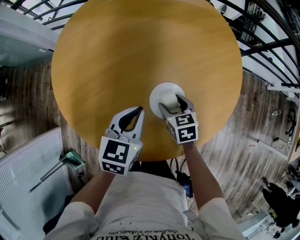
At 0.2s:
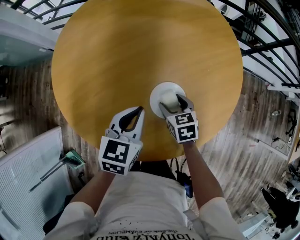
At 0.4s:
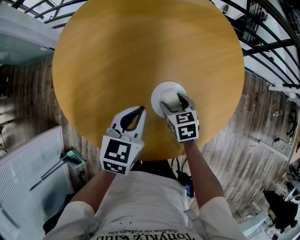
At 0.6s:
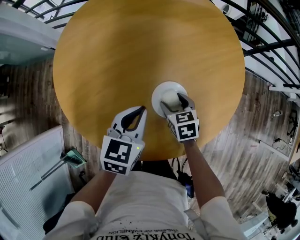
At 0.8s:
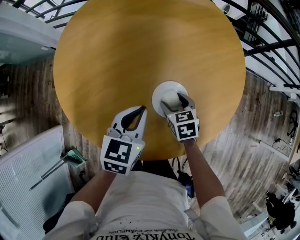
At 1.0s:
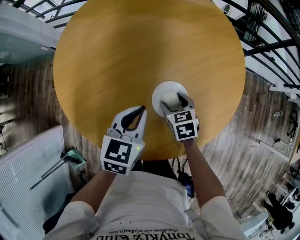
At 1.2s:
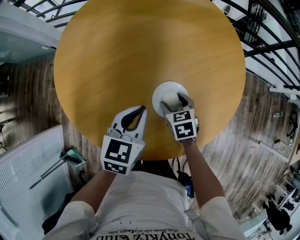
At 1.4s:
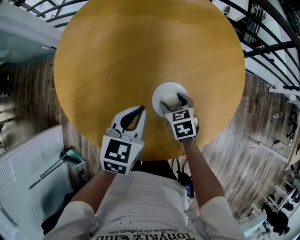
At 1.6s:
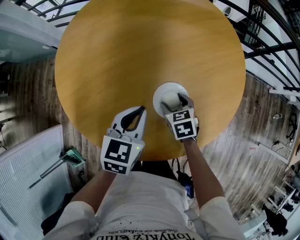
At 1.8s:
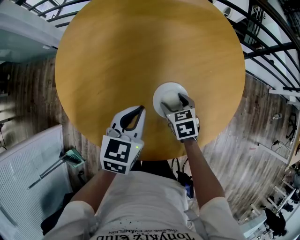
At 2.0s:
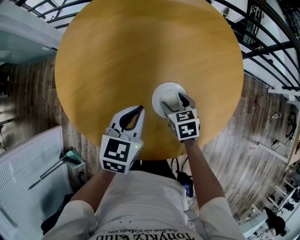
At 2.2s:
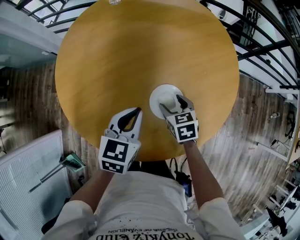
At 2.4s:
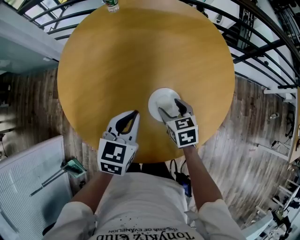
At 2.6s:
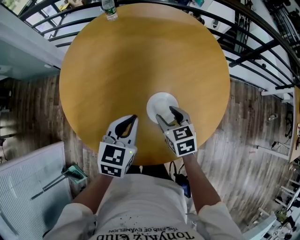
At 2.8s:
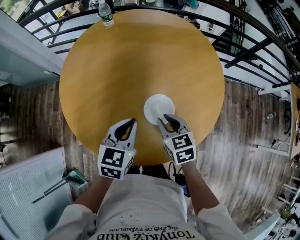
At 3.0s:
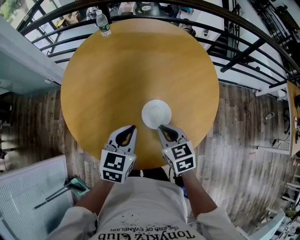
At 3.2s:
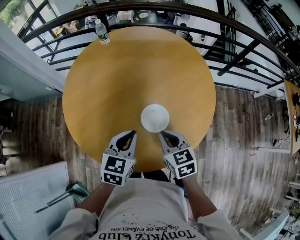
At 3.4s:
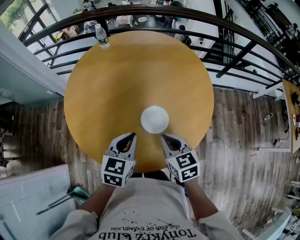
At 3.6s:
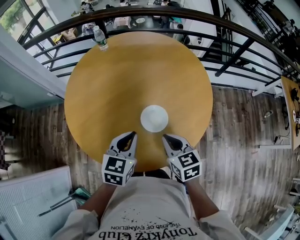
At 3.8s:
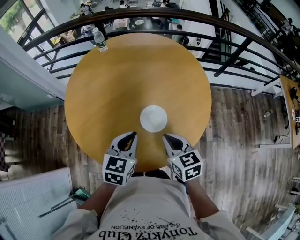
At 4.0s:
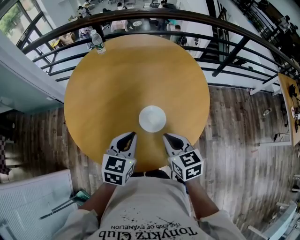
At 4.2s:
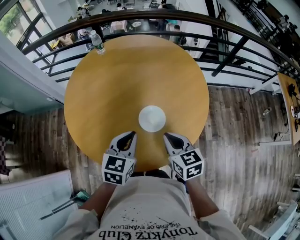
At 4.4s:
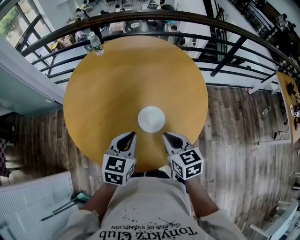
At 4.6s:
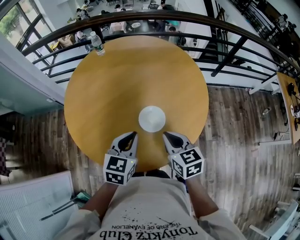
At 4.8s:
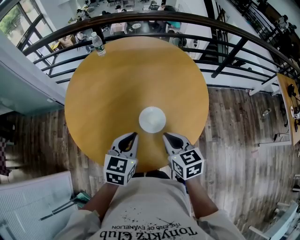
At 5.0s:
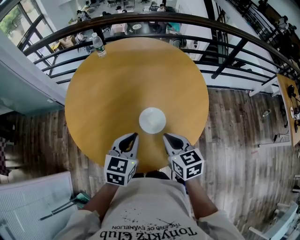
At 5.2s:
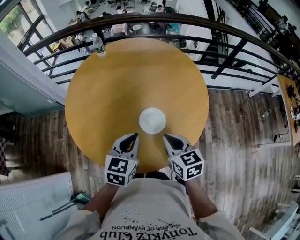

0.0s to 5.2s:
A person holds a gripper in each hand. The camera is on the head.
0.0s to 1.8s: The grippers make only small movements.
1.8s to 3.4s: The right gripper heads upward and backward, covering some 25 cm, changes its angle by some 20 degrees, and closes, while the left gripper travels backward and upward by approximately 10 cm.
3.4s to 5.2s: There are only small adjustments of the grippers.

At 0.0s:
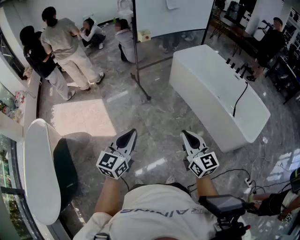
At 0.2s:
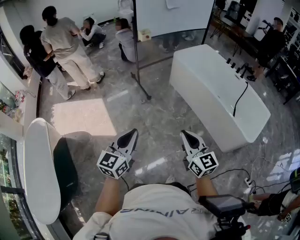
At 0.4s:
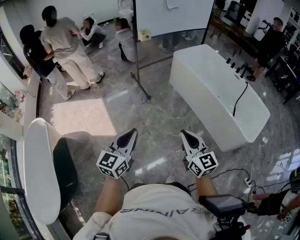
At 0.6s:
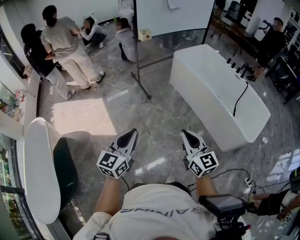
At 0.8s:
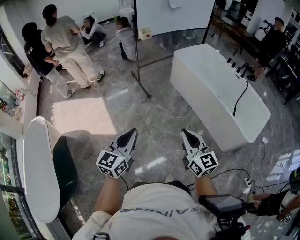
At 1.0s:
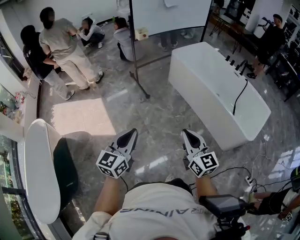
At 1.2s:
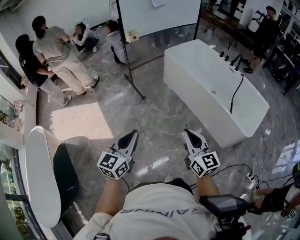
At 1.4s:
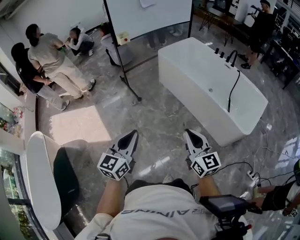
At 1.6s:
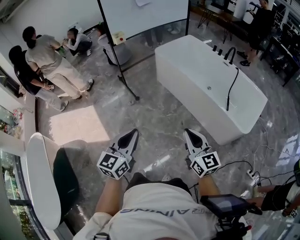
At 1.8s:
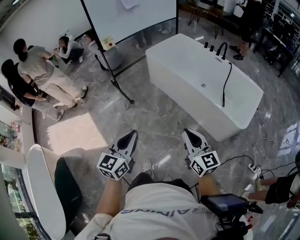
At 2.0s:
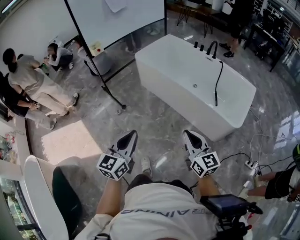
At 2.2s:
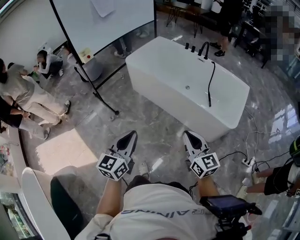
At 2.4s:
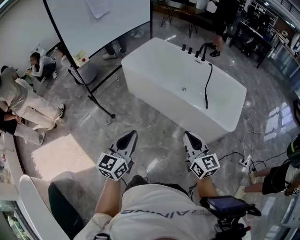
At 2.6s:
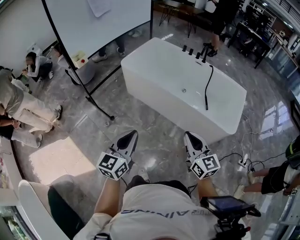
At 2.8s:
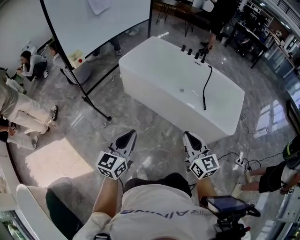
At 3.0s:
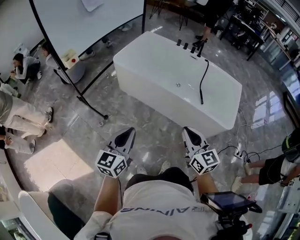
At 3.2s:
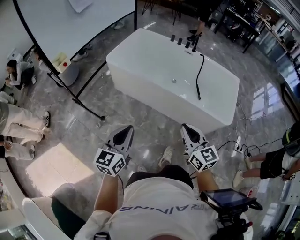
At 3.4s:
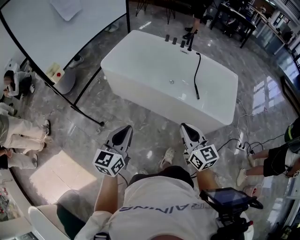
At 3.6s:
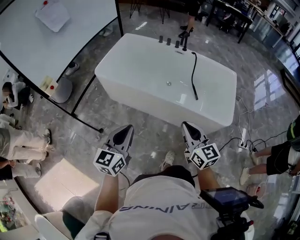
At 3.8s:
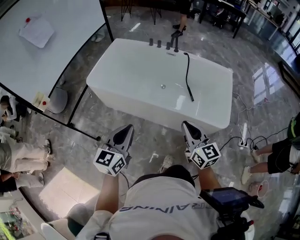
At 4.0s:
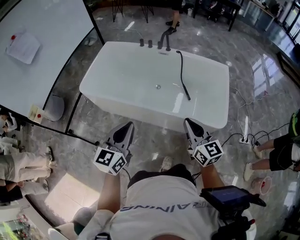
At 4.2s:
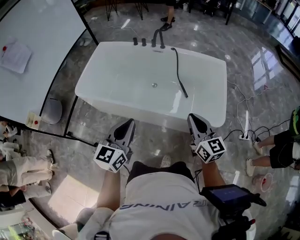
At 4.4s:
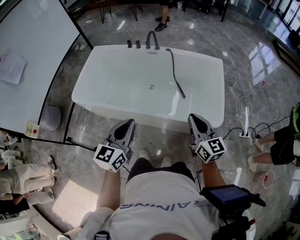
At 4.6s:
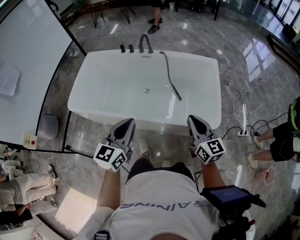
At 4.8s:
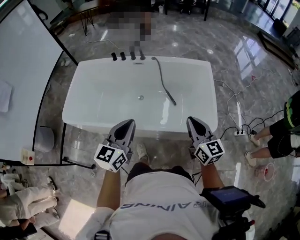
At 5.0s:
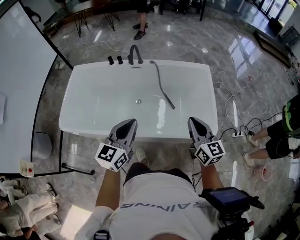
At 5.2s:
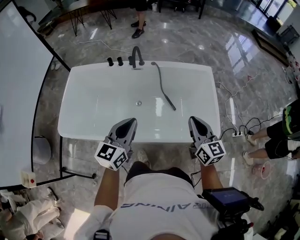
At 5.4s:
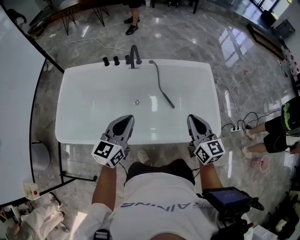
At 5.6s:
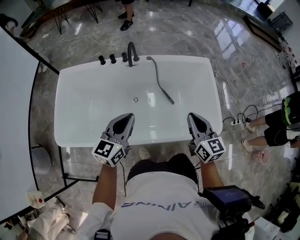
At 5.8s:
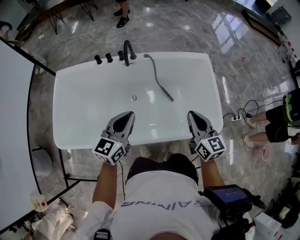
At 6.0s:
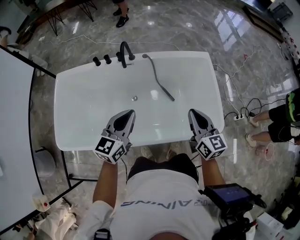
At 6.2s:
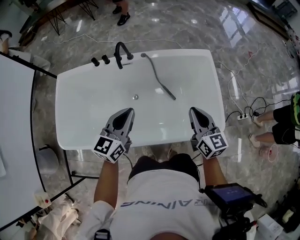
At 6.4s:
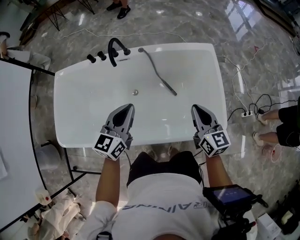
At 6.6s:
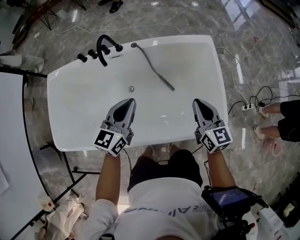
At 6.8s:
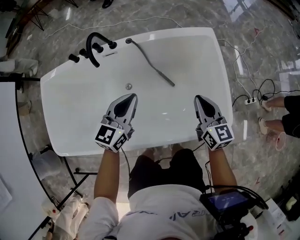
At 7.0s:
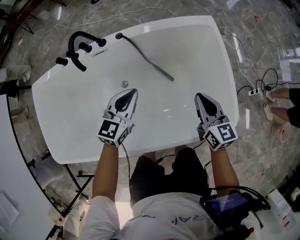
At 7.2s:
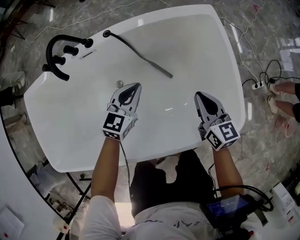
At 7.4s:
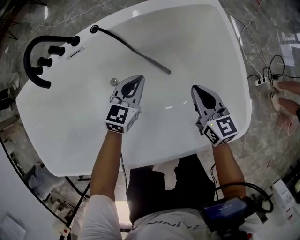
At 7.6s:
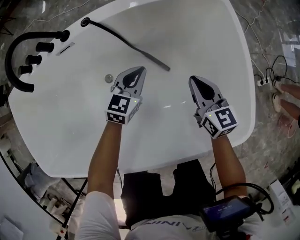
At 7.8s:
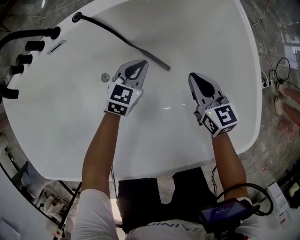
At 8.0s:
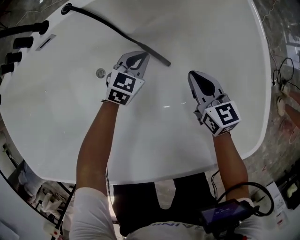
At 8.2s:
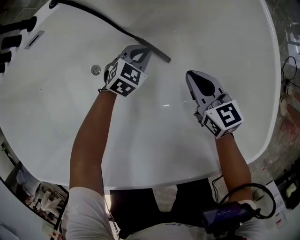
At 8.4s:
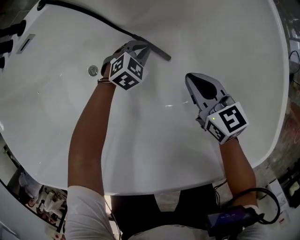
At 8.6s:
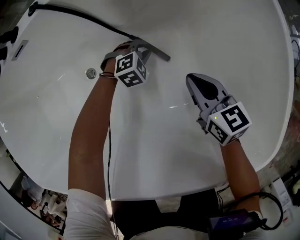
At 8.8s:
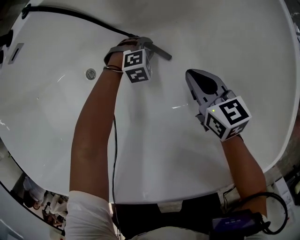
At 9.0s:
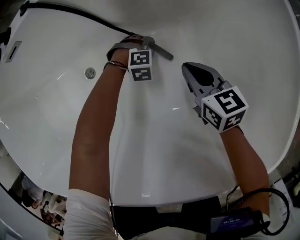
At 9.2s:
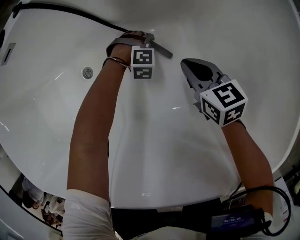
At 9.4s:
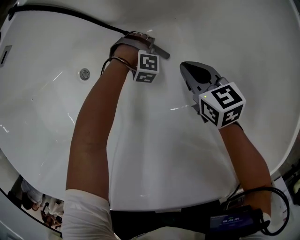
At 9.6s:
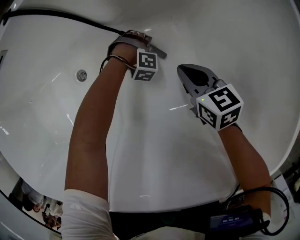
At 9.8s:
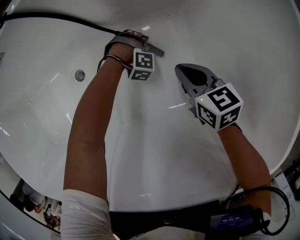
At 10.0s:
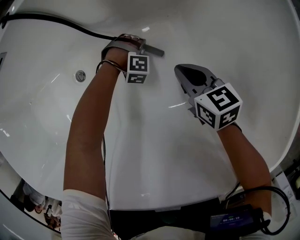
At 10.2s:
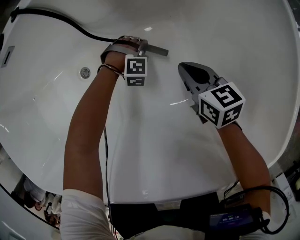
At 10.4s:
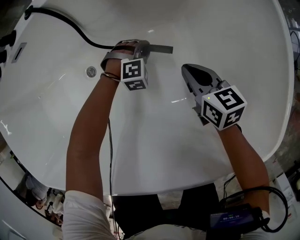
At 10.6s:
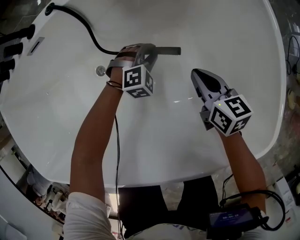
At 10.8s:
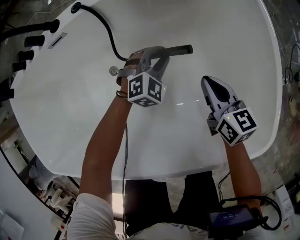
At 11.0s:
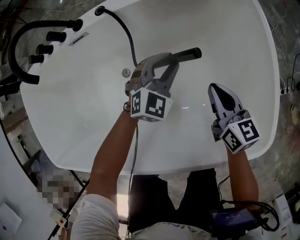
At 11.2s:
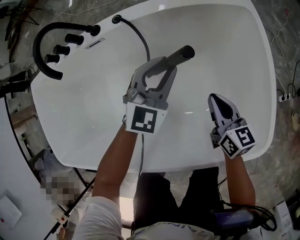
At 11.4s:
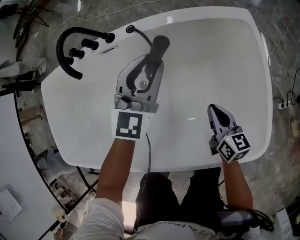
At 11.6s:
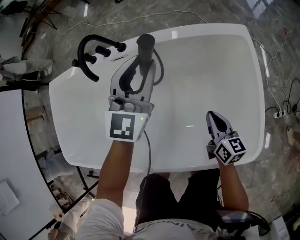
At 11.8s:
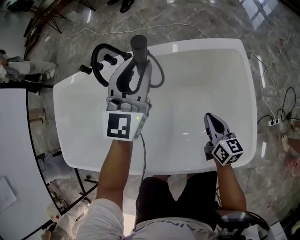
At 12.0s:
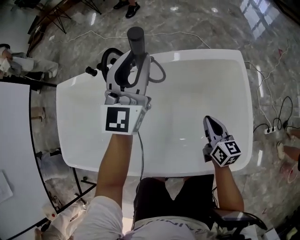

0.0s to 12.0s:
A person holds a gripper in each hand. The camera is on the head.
0.0s to 1.6s: The two grippers go roughly 20 cm to the right.
1.6s to 3.0s: The grippers both shift forward by about 30 cm. The left gripper swivels some 20 degrees. Meanwhile the right gripper changes its angle by roughly 20 degrees.
3.0s to 4.4s: The two grippers travel together, forward and to the right, about 50 cm. The right gripper rotates roughly 20 degrees.
4.4s to 6.0s: Both grippers move forward, approximately 30 cm. The left gripper turns by approximately 20 degrees. Meanwhile the right gripper changes its angle by about 20 degrees.
6.0s to 7.6s: The two grippers go some 50 cm downward and forward. The left gripper swivels about 20 degrees.
7.6s to 9.0s: The right gripper travels downward by approximately 25 cm. The left gripper shifts approximately 40 cm downward, rolls clockwise, seen from behind, by roughly 60 degrees, and opens.
9.0s to 10.4s: The left gripper is displaced upward by about 5 cm.
10.4s to 12.0s: The left gripper goes some 80 cm upward, and tips its fingers upward by approximately 70 degrees. The right gripper heads upward, covering some 35 cm.

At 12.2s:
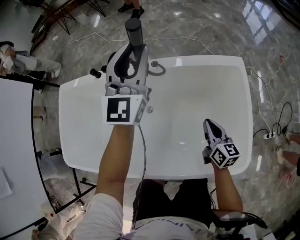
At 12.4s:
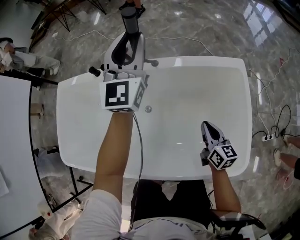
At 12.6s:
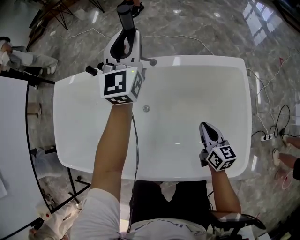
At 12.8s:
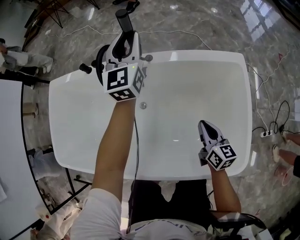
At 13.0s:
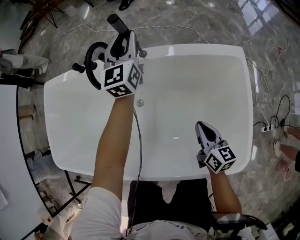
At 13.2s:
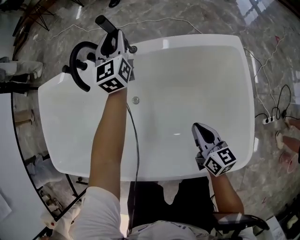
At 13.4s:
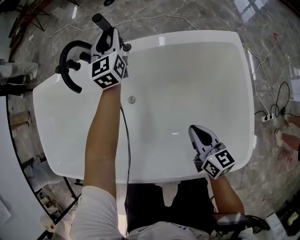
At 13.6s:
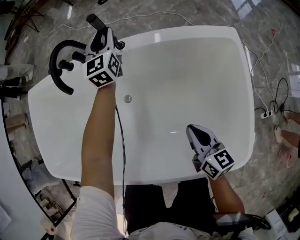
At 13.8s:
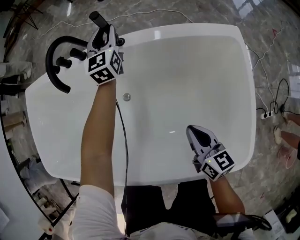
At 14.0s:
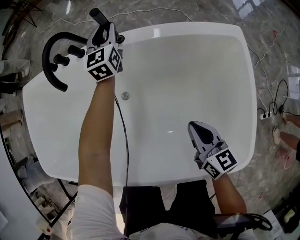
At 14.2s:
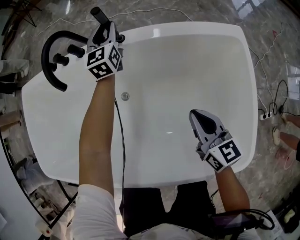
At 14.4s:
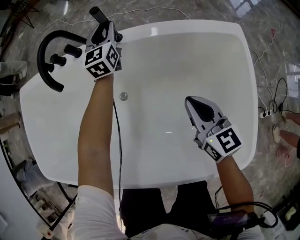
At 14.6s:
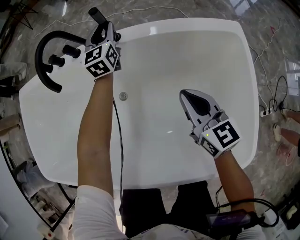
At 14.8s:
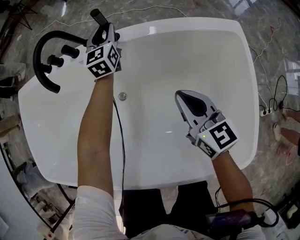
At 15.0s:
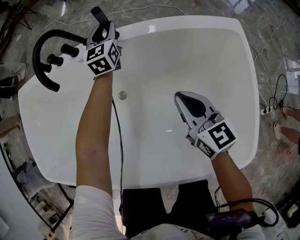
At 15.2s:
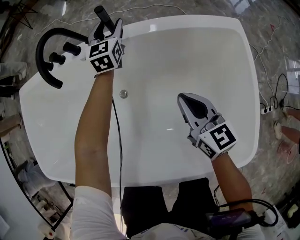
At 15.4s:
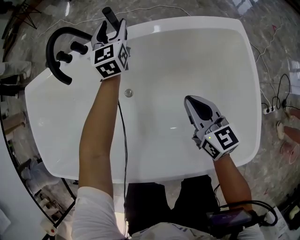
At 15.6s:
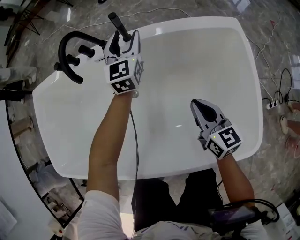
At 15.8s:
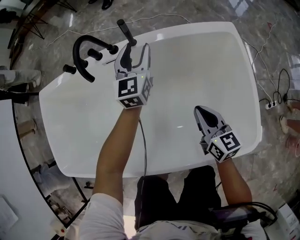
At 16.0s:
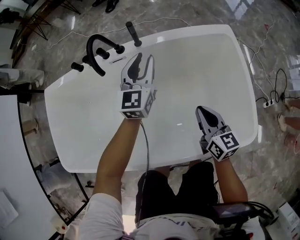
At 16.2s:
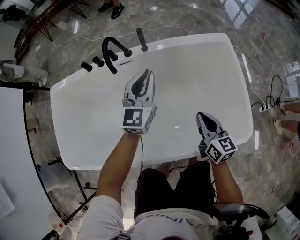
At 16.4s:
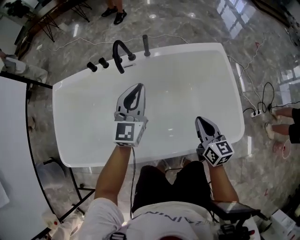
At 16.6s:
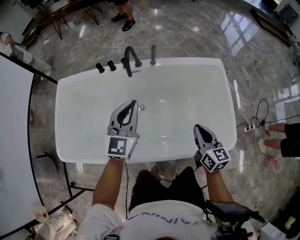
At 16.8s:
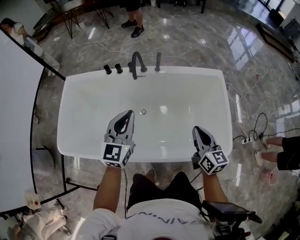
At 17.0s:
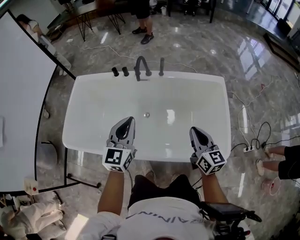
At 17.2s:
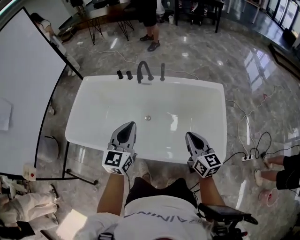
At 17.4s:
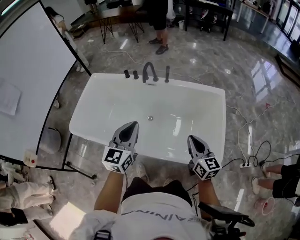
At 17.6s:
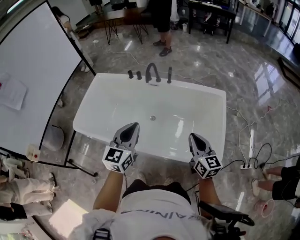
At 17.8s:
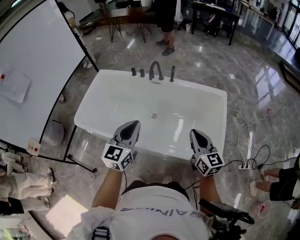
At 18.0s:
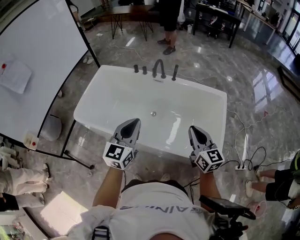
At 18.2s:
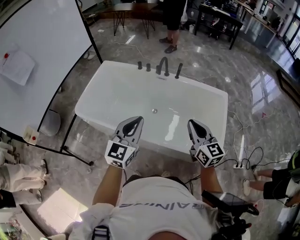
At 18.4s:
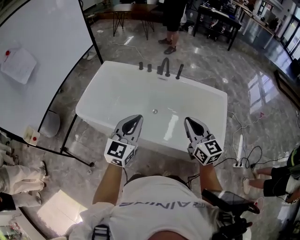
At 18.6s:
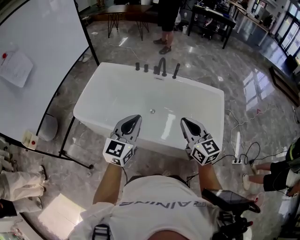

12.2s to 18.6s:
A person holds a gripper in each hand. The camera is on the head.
12.2s to 13.8s: The right gripper heads downward, covering some 10 cm, while the left gripper heads downward and forward, covering approximately 35 cm, and turns by roughly 20 degrees.
13.8s to 15.4s: The right gripper is displaced forward by about 5 cm. The left gripper opens its fingers.
15.4s to 17.0s: The right gripper shifts roughly 40 cm upward and backward. Meanwhile the left gripper travels backward and upward by about 60 cm, and closes up.
17.0s to 18.6s: The left gripper shifts roughly 25 cm backward and upward, while the right gripper goes approximately 25 cm backward, upward and to the left, and rotates approximately 20 degrees.
